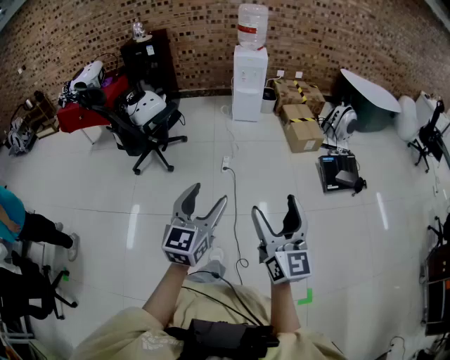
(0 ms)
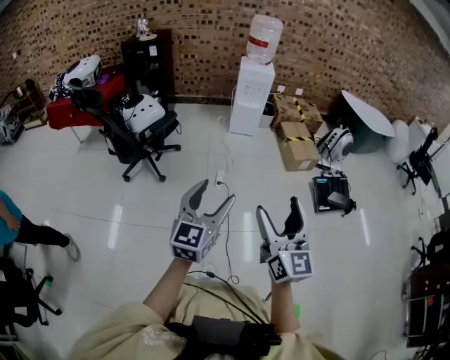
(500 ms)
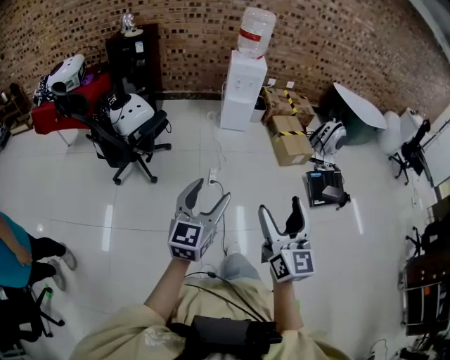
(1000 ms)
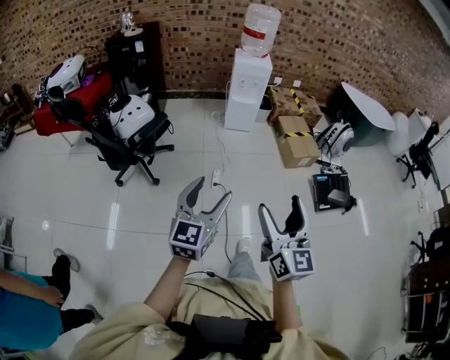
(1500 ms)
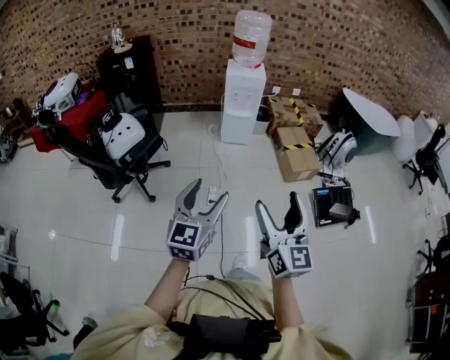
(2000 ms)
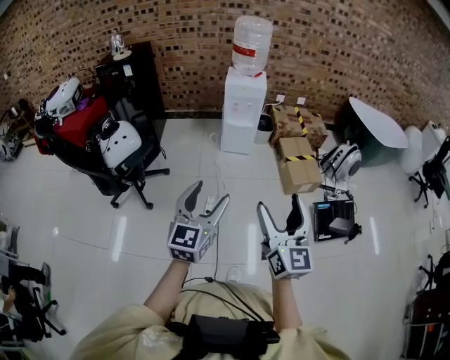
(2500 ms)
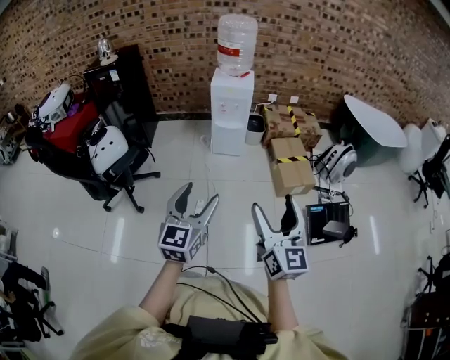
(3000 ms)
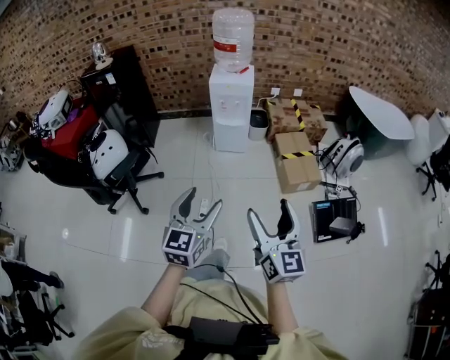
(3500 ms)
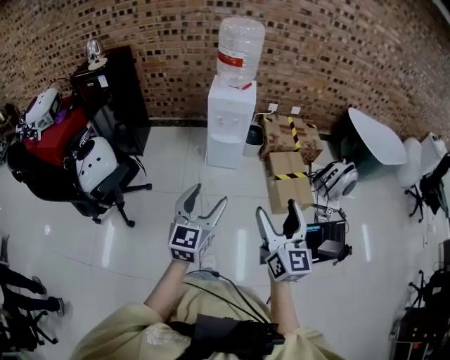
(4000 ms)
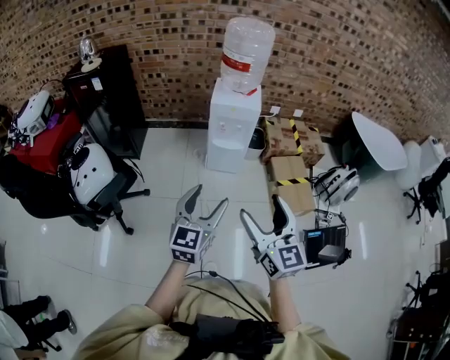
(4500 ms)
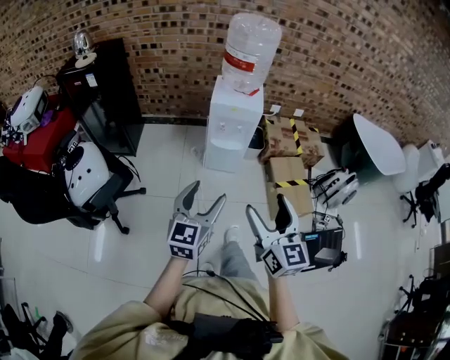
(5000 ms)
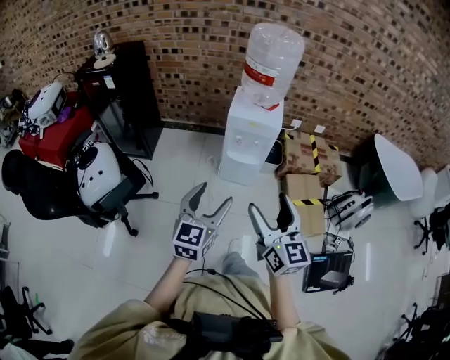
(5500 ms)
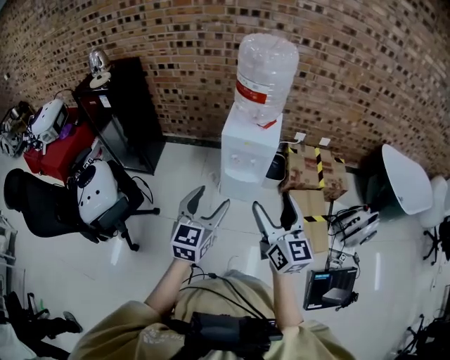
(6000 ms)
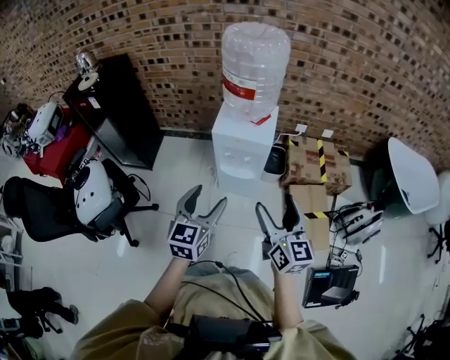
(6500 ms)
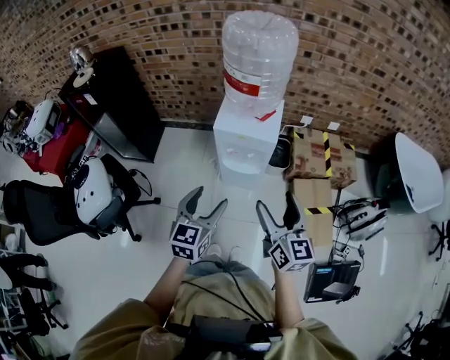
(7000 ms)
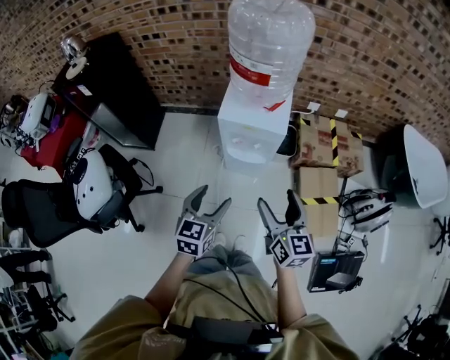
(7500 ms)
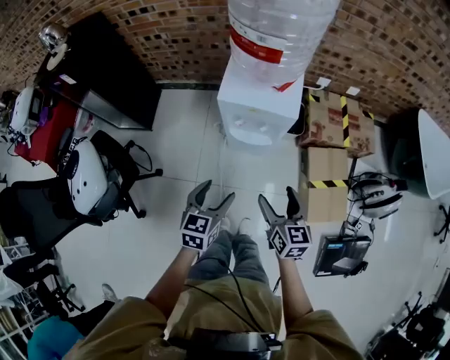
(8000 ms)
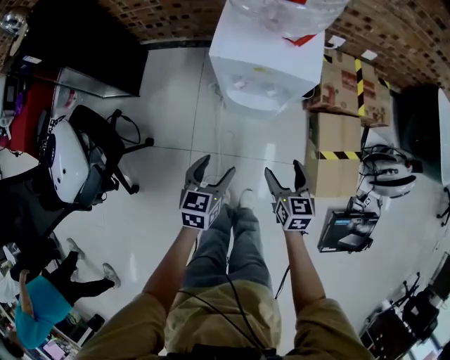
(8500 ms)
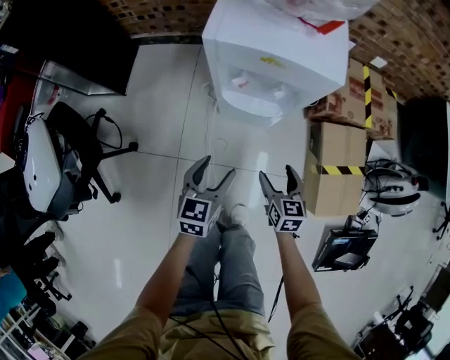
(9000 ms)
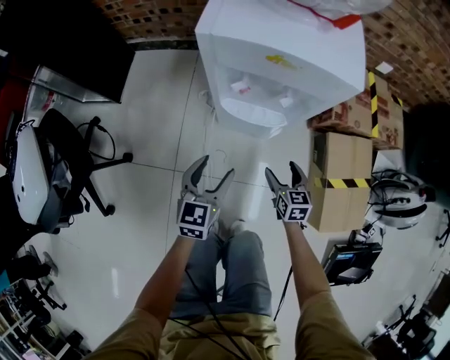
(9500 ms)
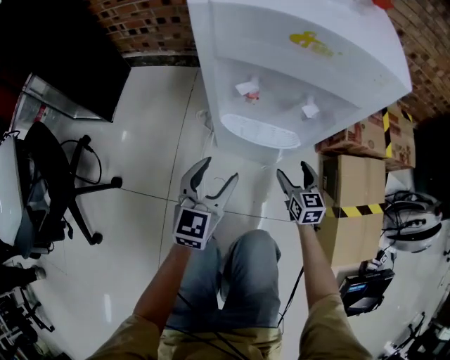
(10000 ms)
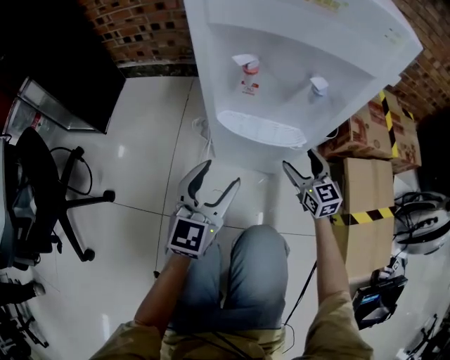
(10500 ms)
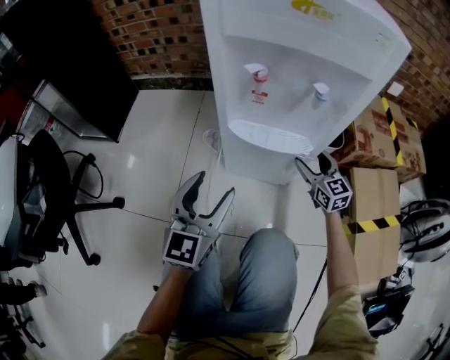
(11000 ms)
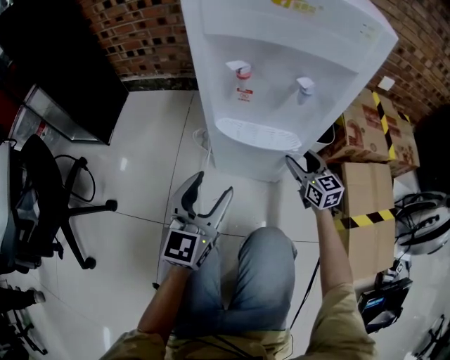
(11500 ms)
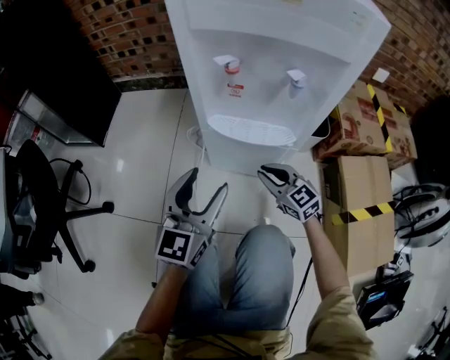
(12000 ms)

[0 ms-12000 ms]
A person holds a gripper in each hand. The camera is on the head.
0 ms to 2000 ms: Both grippers move forward, approximately 35 cm.
2000 ms to 4000 ms: The right gripper moves forward and to the right, roughly 35 cm, while the left gripper travels forward by some 30 cm.
4000 ms to 6000 ms: Both grippers travel together forward, roughly 35 cm.
6000 ms to 8000 ms: Both grippers travel together downward and forward, some 25 cm. The left gripper changes its angle by about 30 degrees, while the right gripper swivels approximately 30 degrees.
8000 ms to 10000 ms: The left gripper travels downward and forward by roughly 40 cm, and turns by roughly 20 degrees. The right gripper goes some 50 cm downward.
10000 ms to 12000 ms: The right gripper moves to the left, roughly 10 cm, turns by some 30 degrees, and closes.

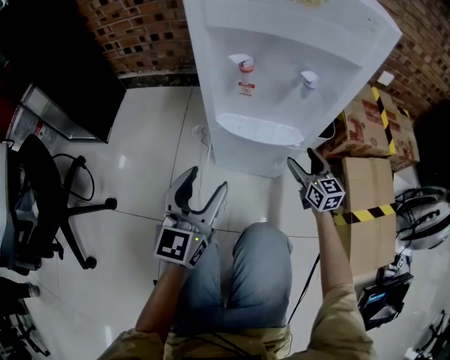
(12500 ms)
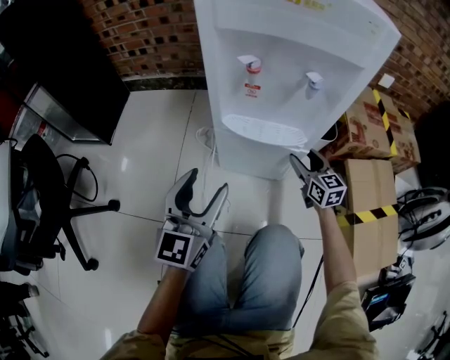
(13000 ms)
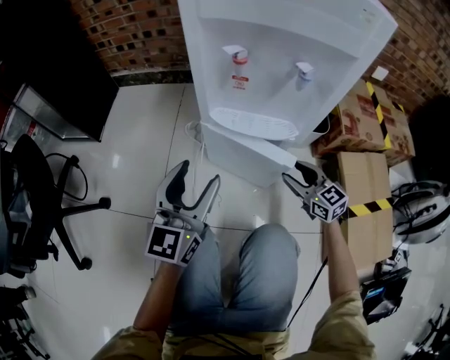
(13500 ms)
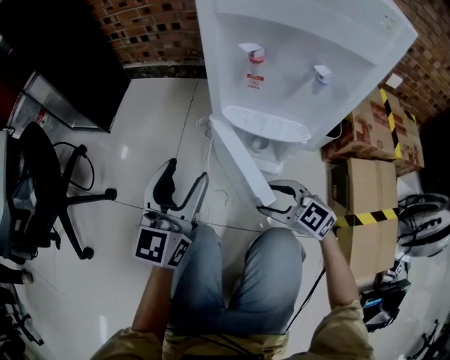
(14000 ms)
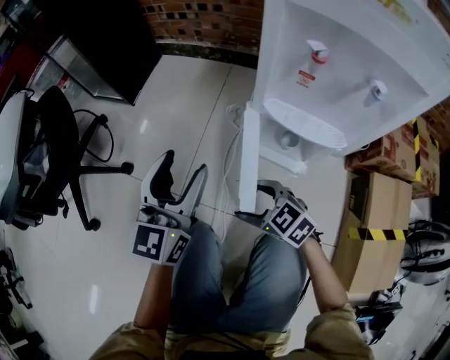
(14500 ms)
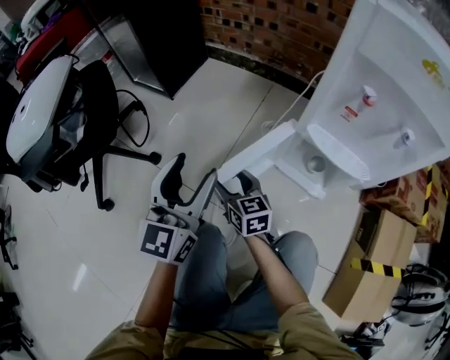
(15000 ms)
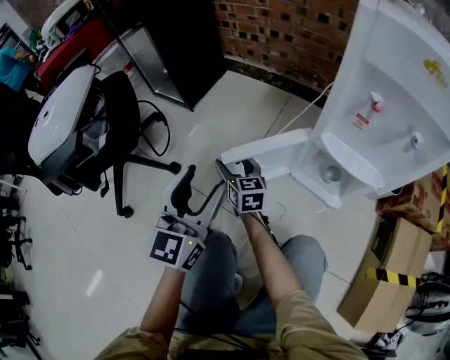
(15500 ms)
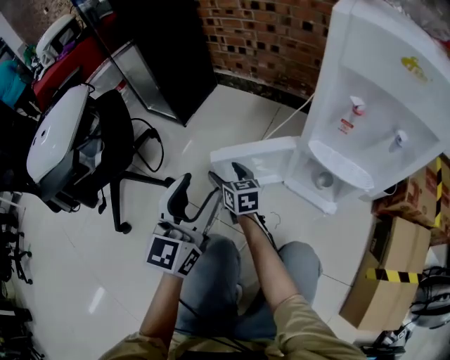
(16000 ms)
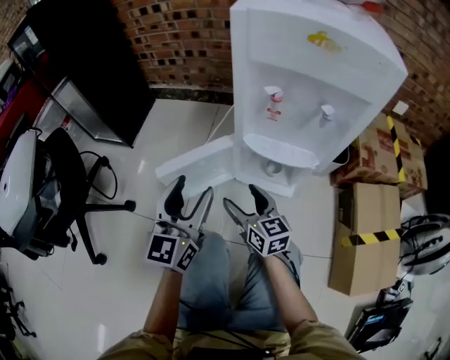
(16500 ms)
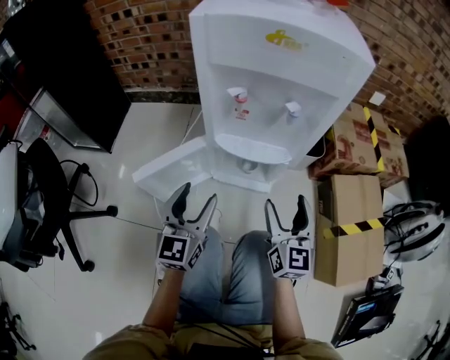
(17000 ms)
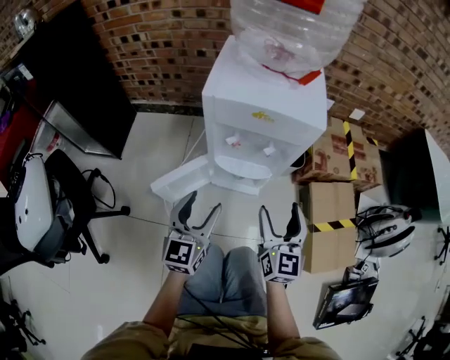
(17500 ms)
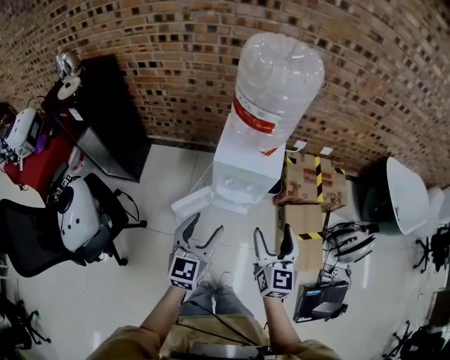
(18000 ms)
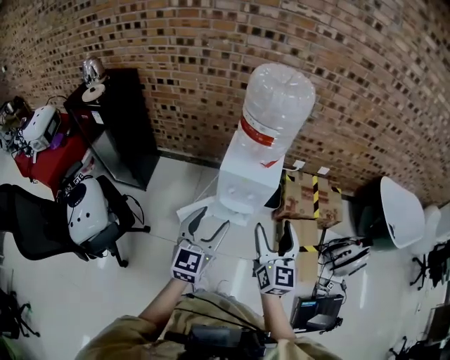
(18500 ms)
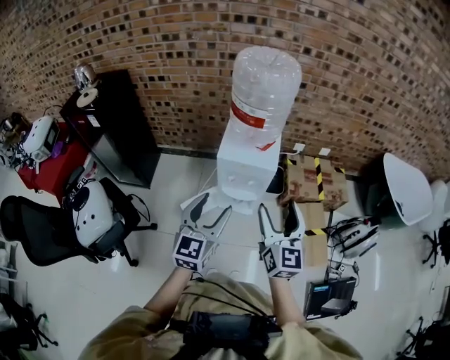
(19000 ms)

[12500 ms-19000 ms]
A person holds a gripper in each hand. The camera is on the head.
12500 ms to 14500 ms: The left gripper changes place by approximately 10 cm. The right gripper shifts by roughly 35 cm, and rotates roughly 60 degrees.
14500 ms to 17000 ms: The left gripper changes place by approximately 10 cm. Meanwhile the right gripper shifts by roughly 25 cm, and tilts its fingers roughly 30 degrees upward.
17000 ms to 19000 ms: Both grippers travel together upward, about 60 cm.

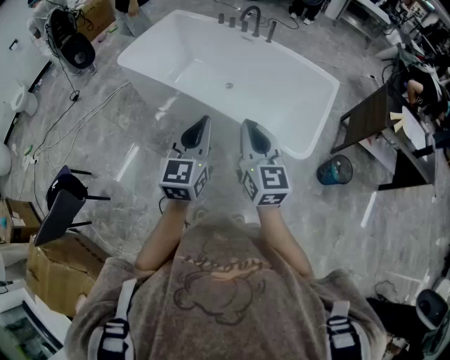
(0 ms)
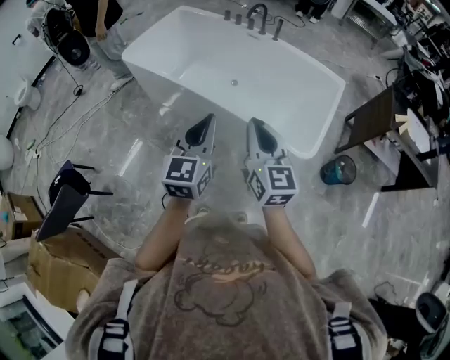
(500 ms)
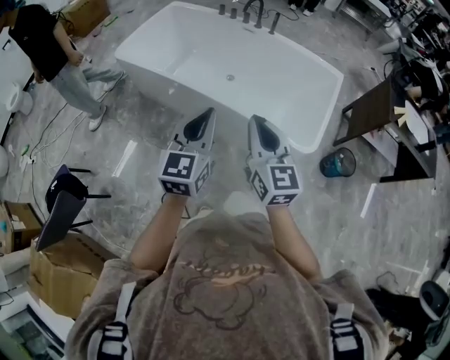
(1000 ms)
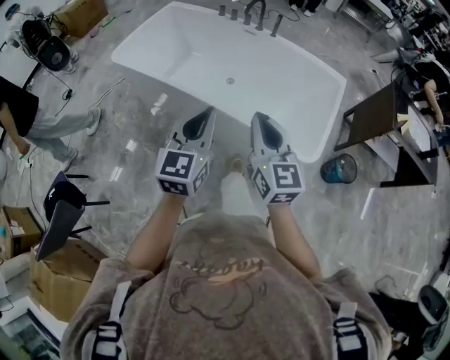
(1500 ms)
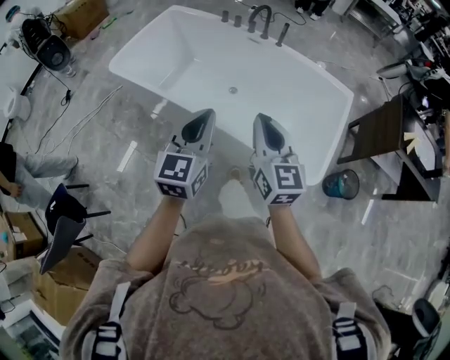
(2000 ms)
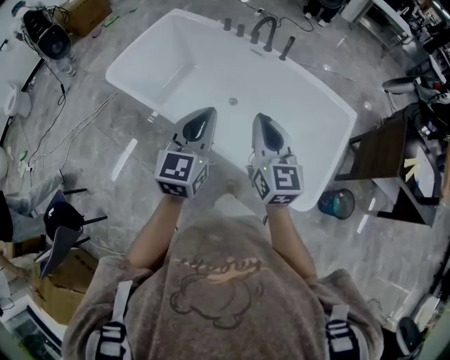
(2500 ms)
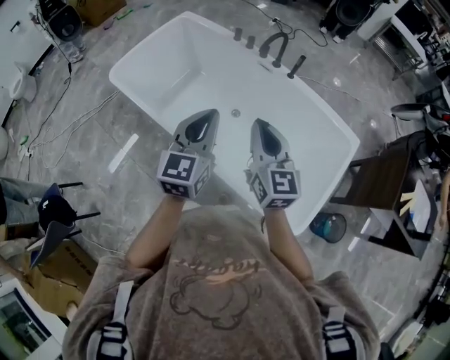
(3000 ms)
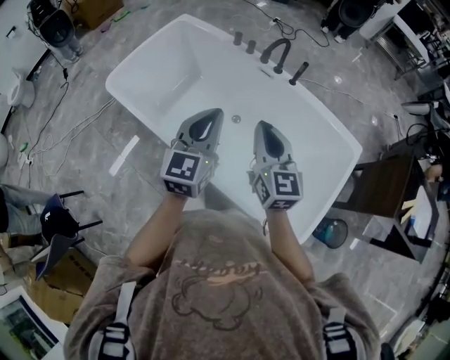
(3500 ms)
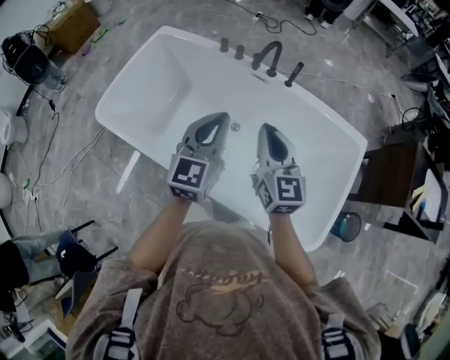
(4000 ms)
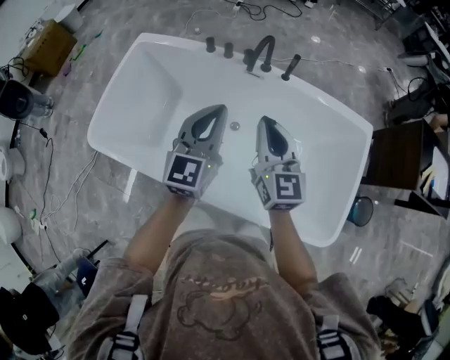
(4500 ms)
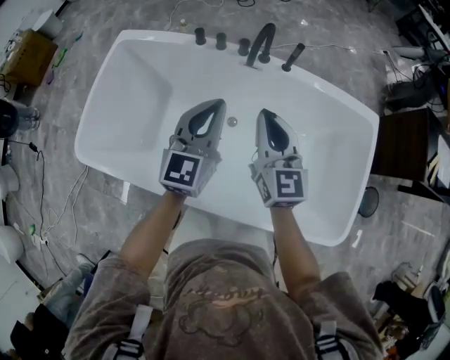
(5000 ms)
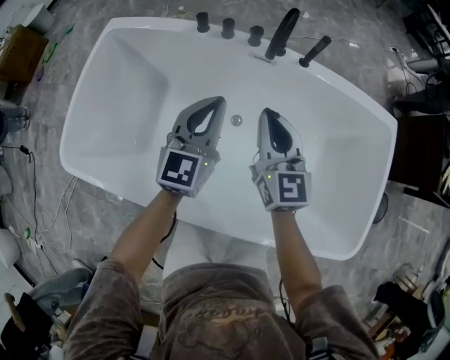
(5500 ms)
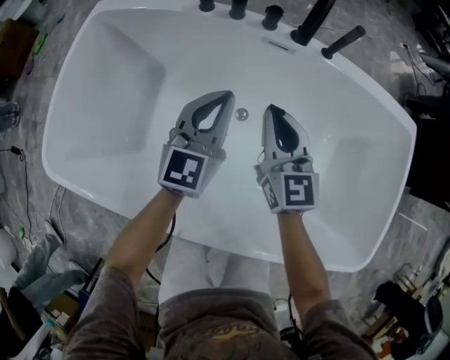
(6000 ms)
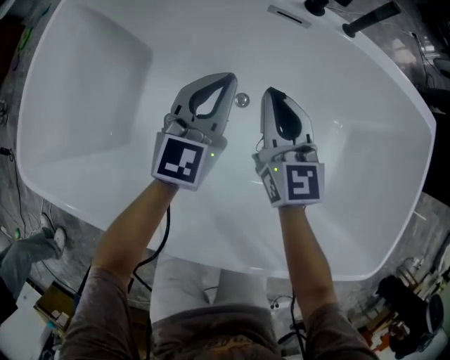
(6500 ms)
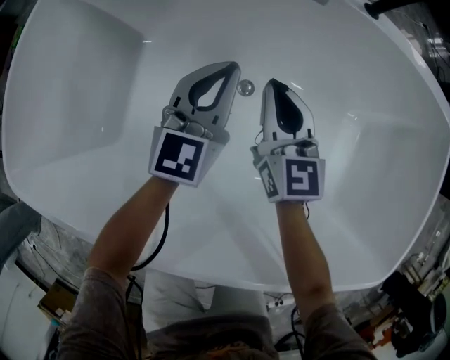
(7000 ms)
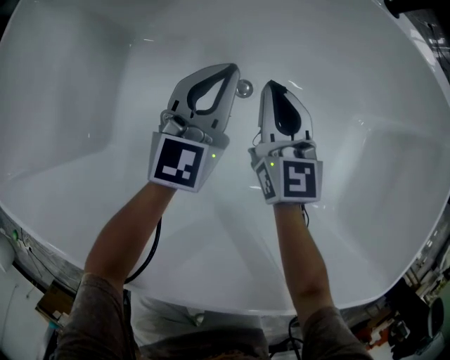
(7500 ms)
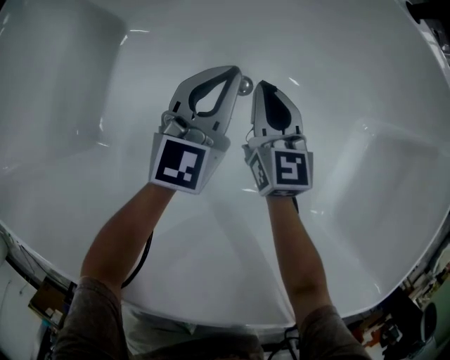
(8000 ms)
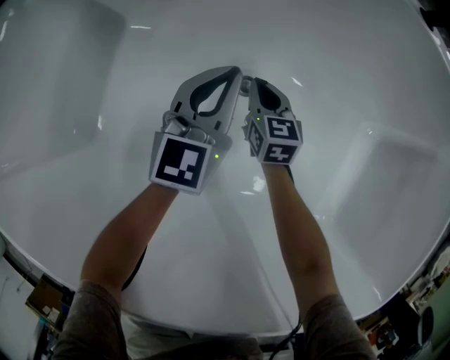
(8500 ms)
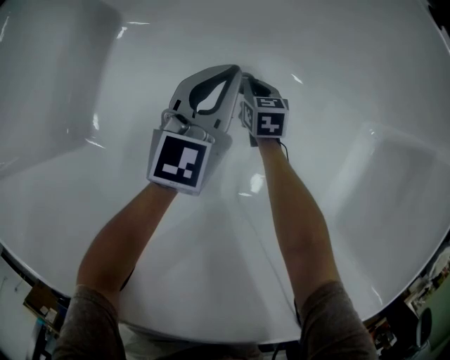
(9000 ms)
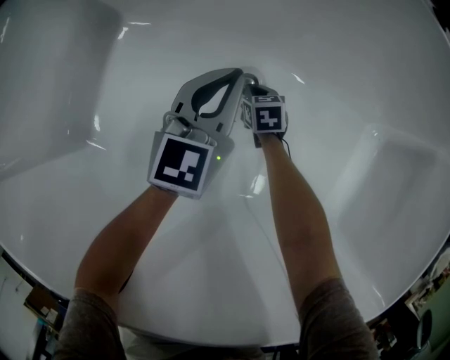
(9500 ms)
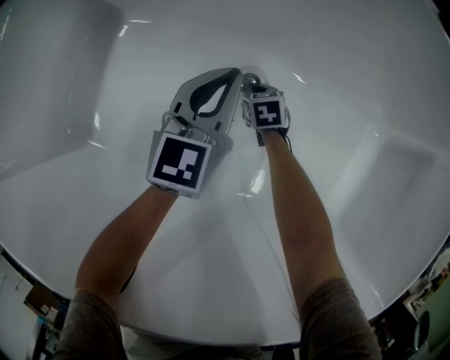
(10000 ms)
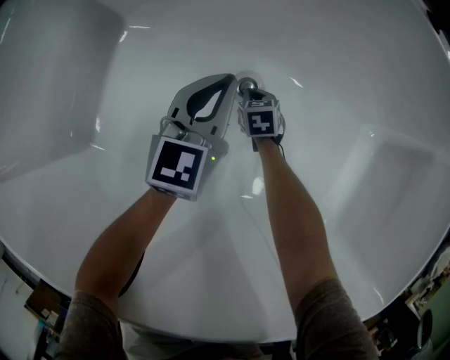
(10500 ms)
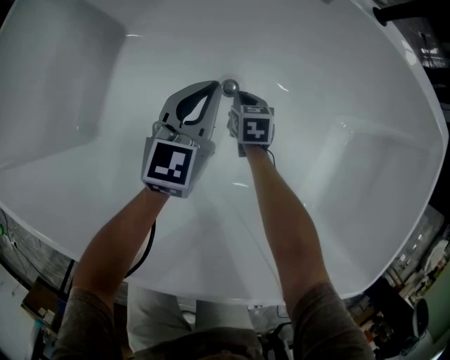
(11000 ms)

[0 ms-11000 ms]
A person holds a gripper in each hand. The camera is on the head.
0 ms to 2000 ms: The two grippers go approximately 20 cm forward.
2000 ms to 3500 ms: The two grippers go roughly 25 cm forward.
3500 ms to 5500 ms: The left gripper is displaced forward and downward by roughly 35 cm, and turns by about 20 degrees. The right gripper travels forward, downward and to the left by approximately 35 cm, and rotates about 20 degrees.
5500 ms to 7500 ms: Both grippers move downward, roughly 35 cm.
7500 ms to 9000 ms: The right gripper is displaced downward by about 30 cm, and tilts its fingers approximately 30 degrees downward; the left gripper moves downward, approximately 10 cm.
9000 ms to 11000 ms: Both grippers travel together upward, roughly 10 cm.
